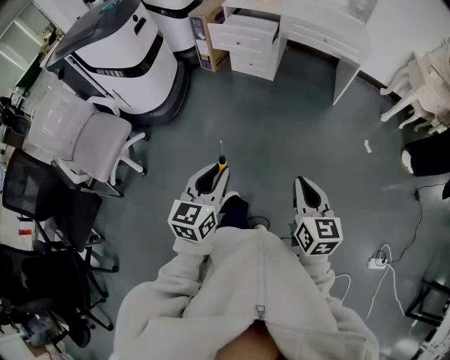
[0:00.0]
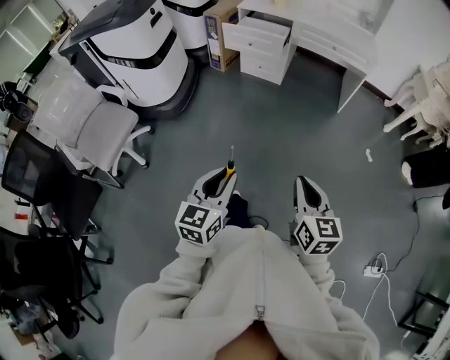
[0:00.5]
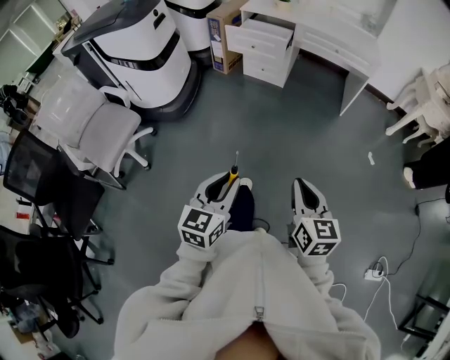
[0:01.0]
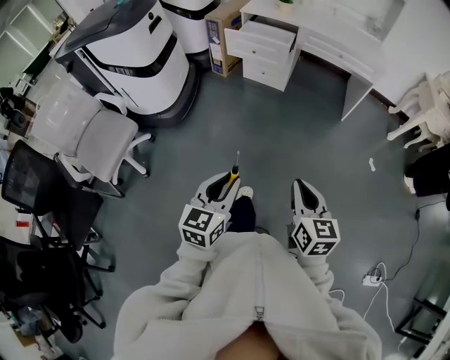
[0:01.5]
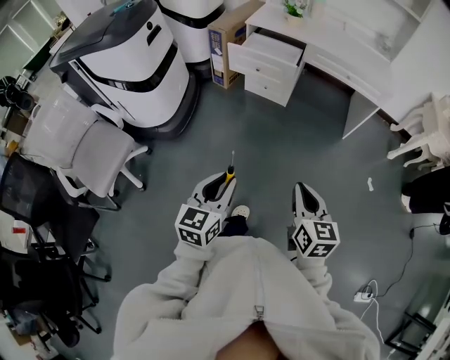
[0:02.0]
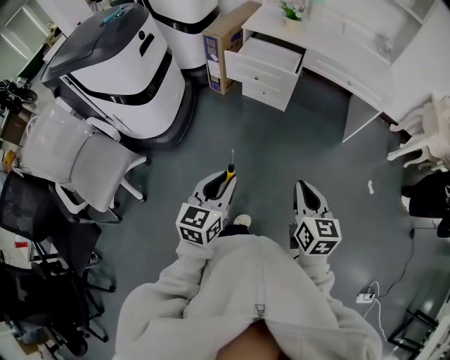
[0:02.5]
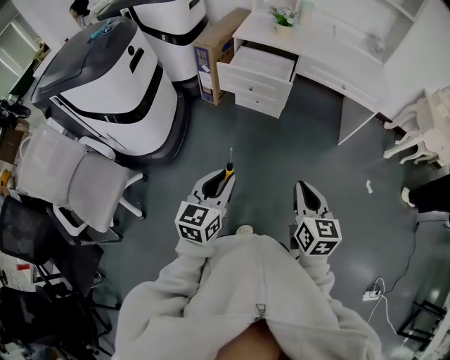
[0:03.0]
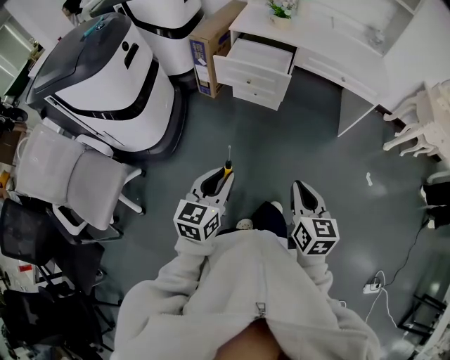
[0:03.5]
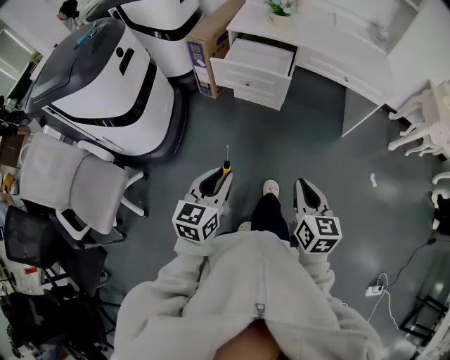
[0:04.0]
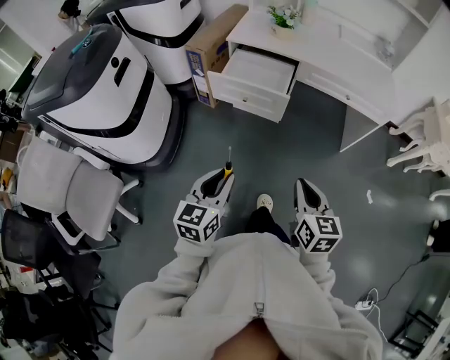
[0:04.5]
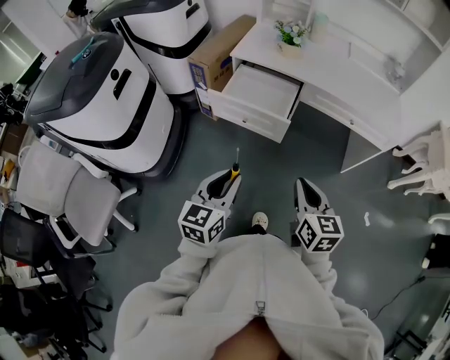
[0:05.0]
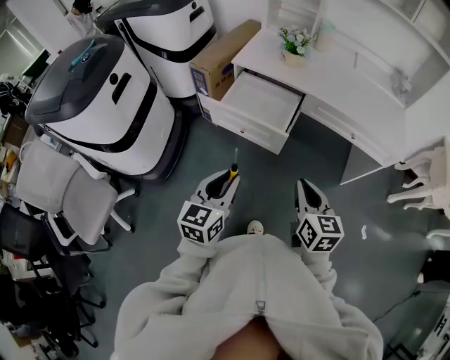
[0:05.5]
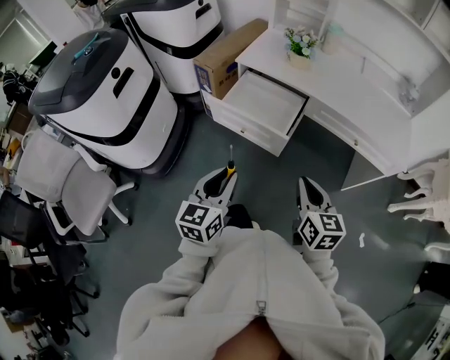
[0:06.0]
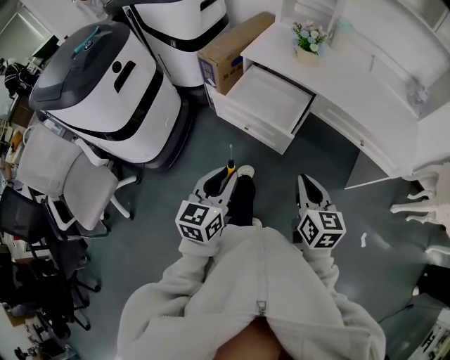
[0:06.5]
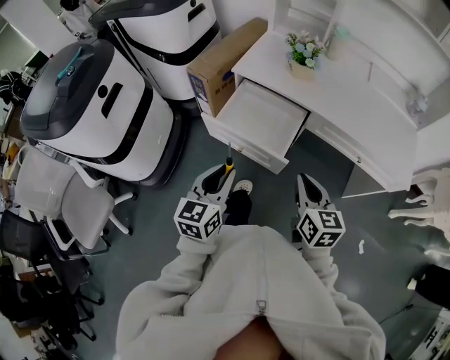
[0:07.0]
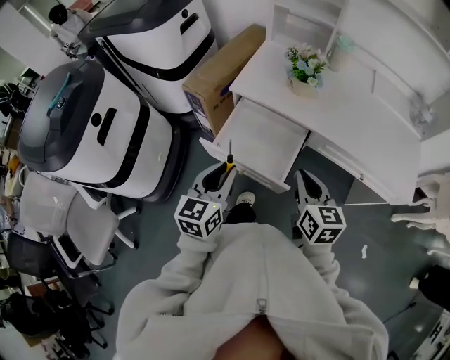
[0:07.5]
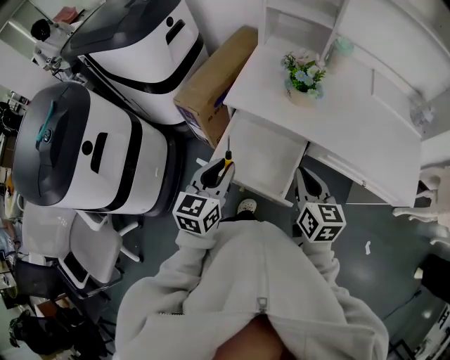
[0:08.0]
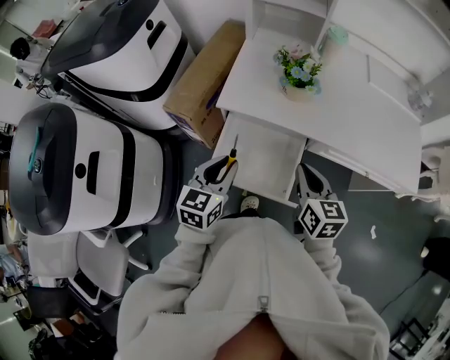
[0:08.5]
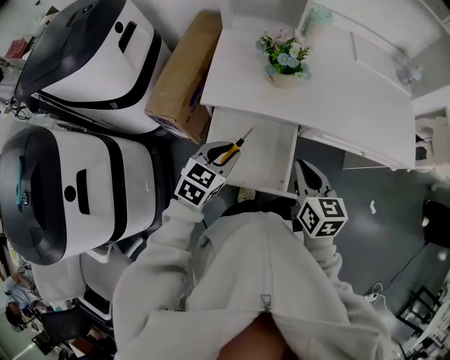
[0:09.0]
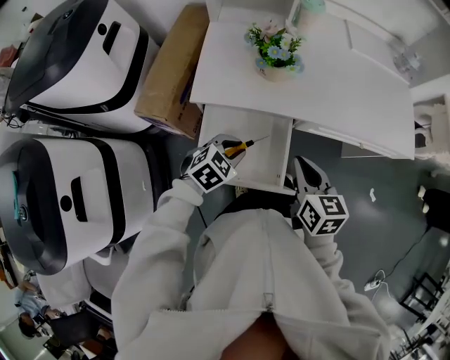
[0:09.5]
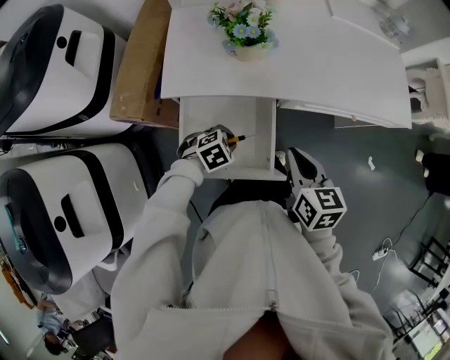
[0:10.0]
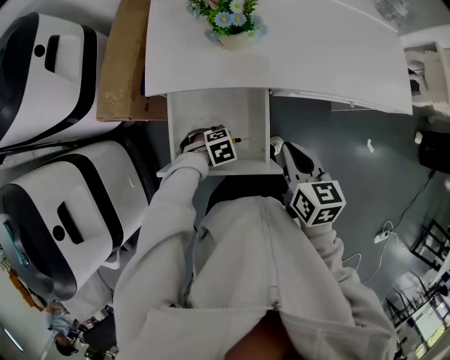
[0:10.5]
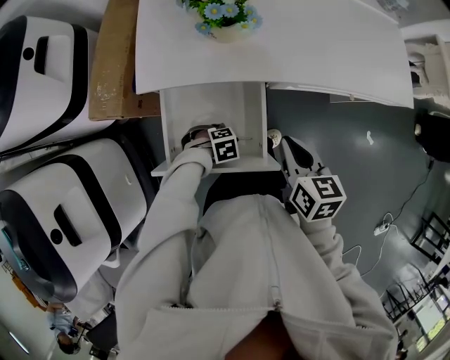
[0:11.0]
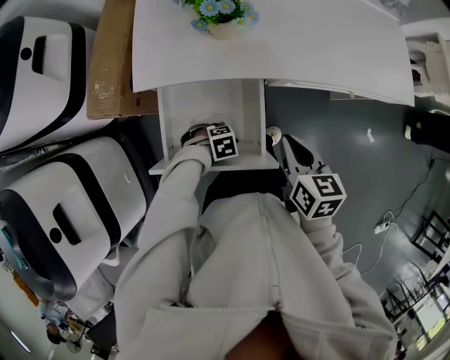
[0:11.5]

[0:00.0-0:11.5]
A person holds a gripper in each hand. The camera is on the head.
0:00.0 to 0:02.0: Both grippers travel together forward, approximately 15 cm.
0:02.0 to 0:04.0: The two grippers go about 15 cm forward.
0:04.0 to 0:06.0: Both grippers travel together forward, approximately 25 cm.
0:06.0 to 0:07.5: The grippers both shift forward by roughly 20 cm.
0:07.5 to 0:09.5: The right gripper changes place by about 10 cm; the left gripper shifts by approximately 20 cm, and points its fingers about 30 degrees further downward.
0:09.5 to 0:11.5: The left gripper goes some 20 cm downward, and swivels roughly 50 degrees; the right gripper is displaced downward by about 5 cm.

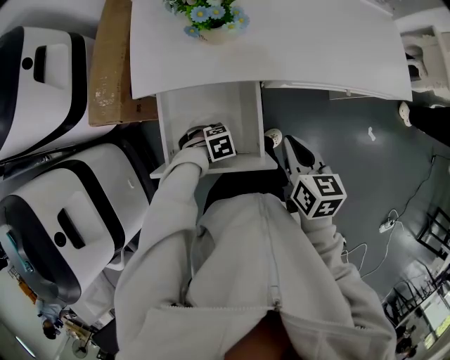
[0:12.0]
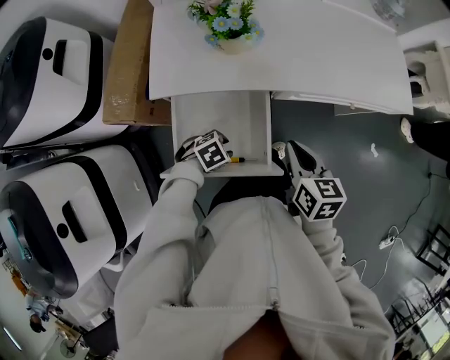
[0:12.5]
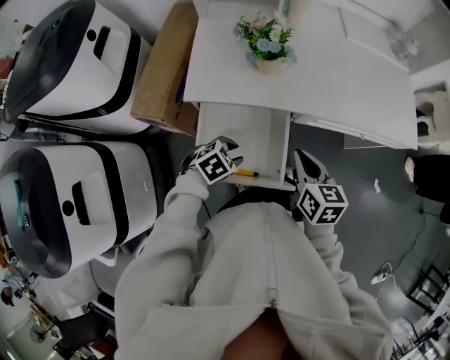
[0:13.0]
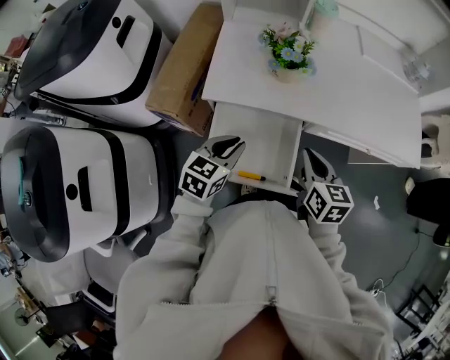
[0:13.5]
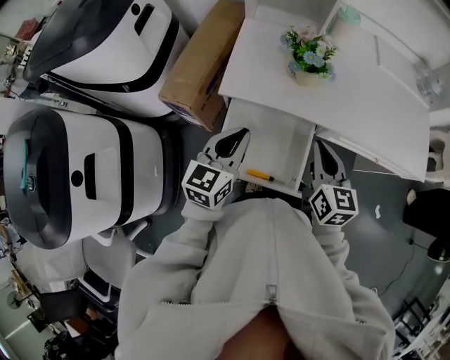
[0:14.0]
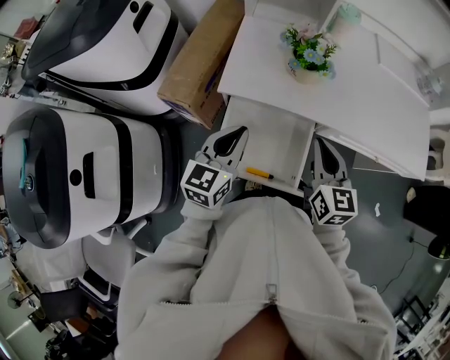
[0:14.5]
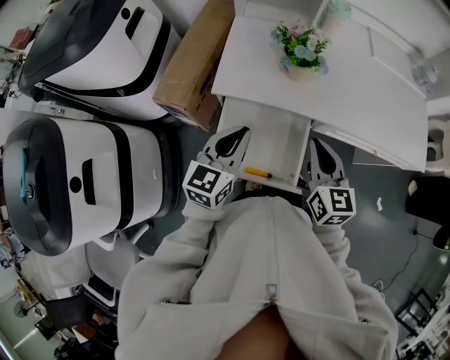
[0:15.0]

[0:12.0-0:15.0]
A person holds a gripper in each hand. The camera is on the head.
0:12.0 to 0:13.5: The right gripper changes place by approximately 10 cm. The left gripper goes approximately 25 cm upward, tips its fingers upward by approximately 40 degrees, and closes.
0:13.5 to 0:15.0: The right gripper moves some 5 cm. Meanwhile the left gripper shifts about 5 cm upward, and changes its angle by about 20 degrees.

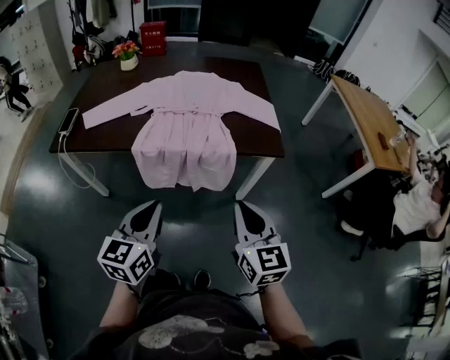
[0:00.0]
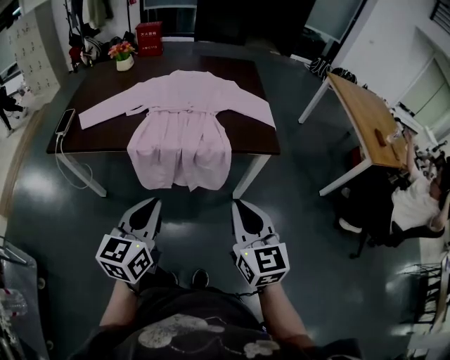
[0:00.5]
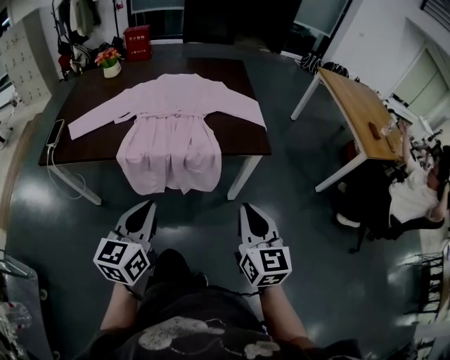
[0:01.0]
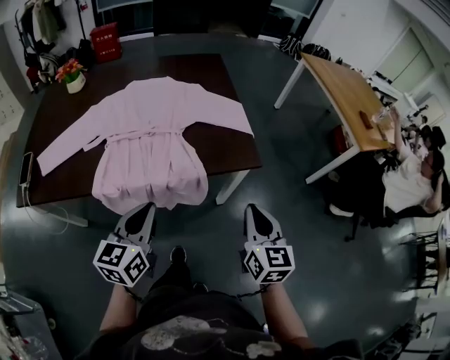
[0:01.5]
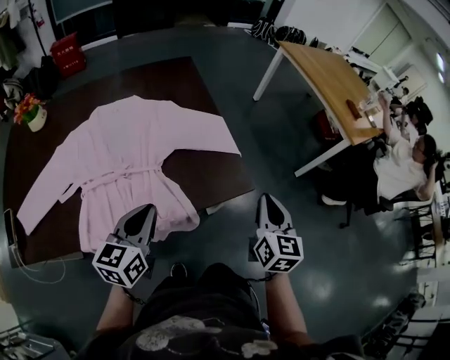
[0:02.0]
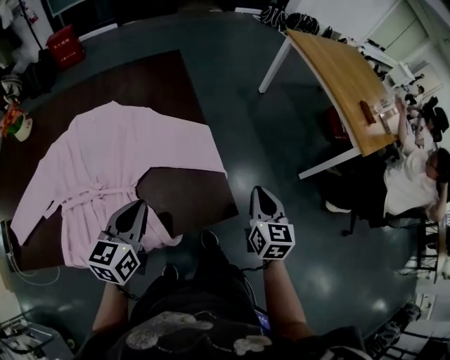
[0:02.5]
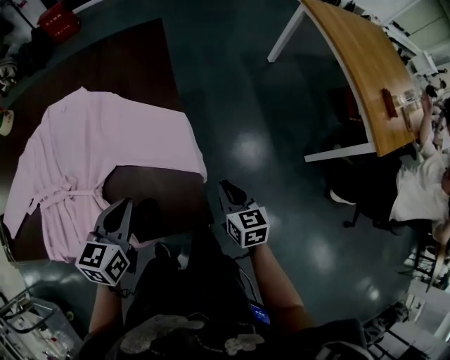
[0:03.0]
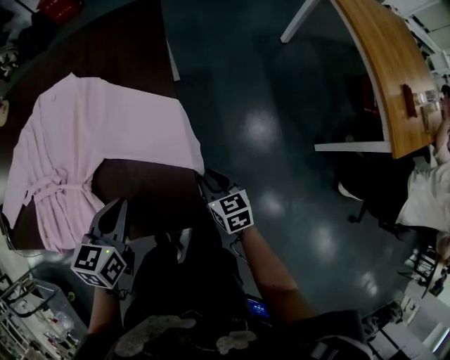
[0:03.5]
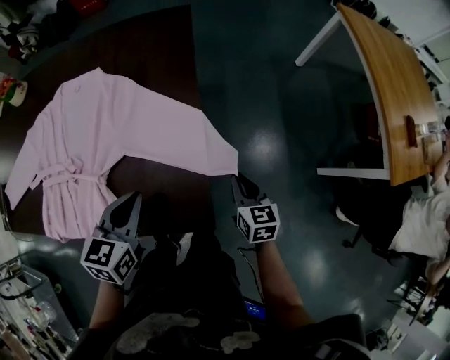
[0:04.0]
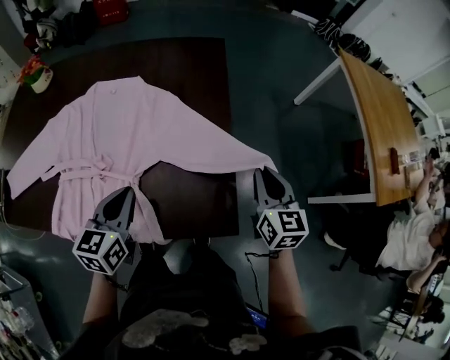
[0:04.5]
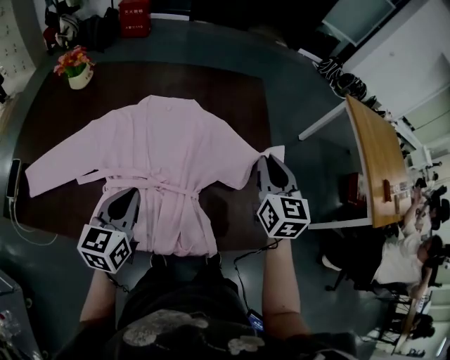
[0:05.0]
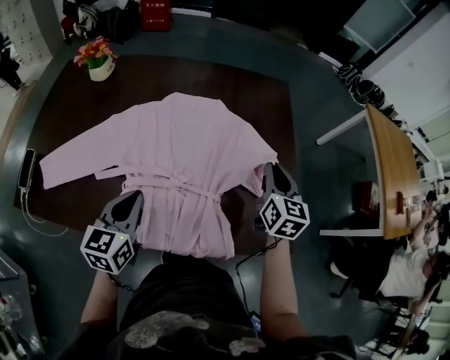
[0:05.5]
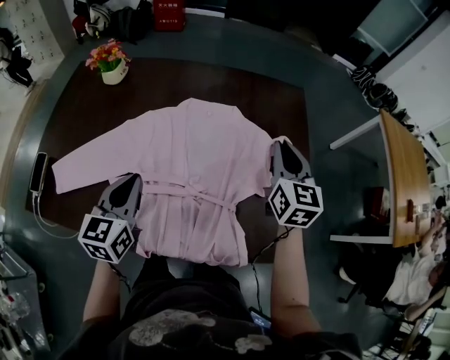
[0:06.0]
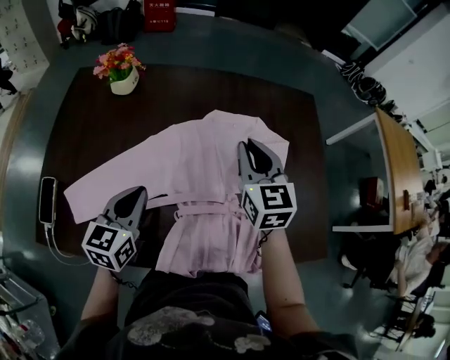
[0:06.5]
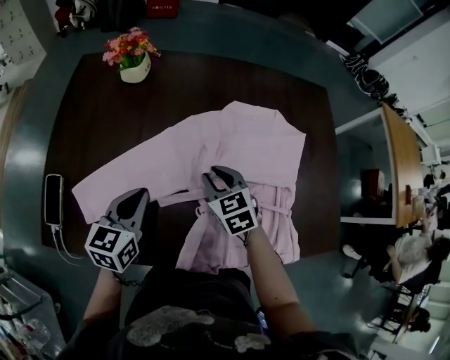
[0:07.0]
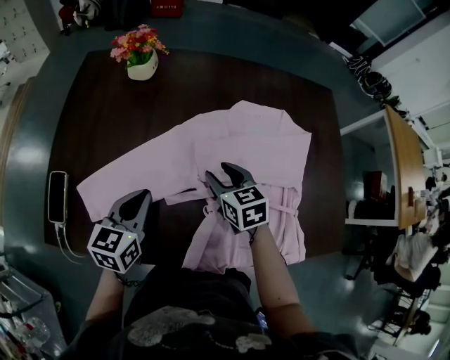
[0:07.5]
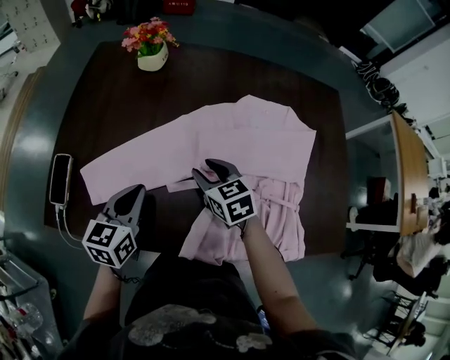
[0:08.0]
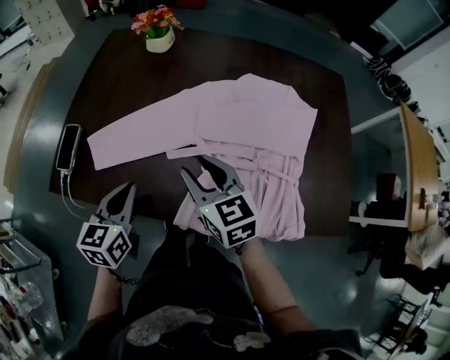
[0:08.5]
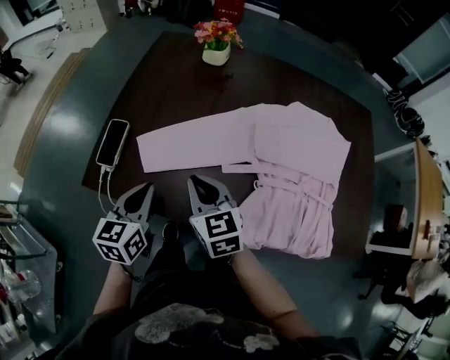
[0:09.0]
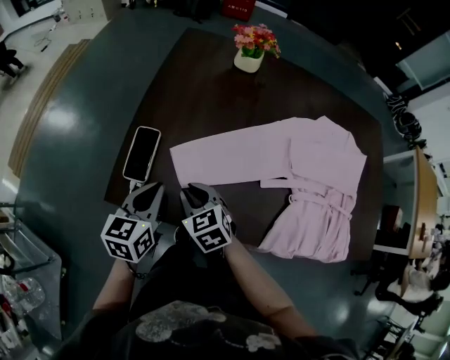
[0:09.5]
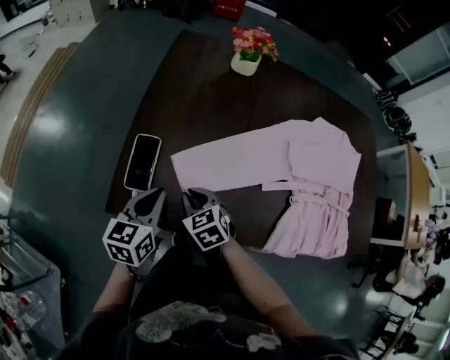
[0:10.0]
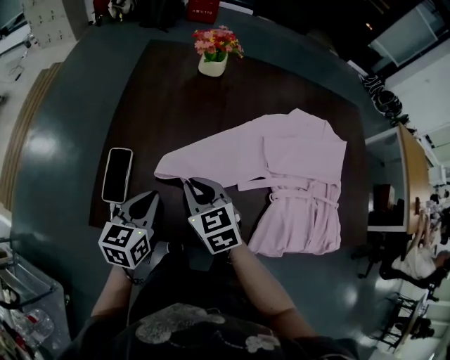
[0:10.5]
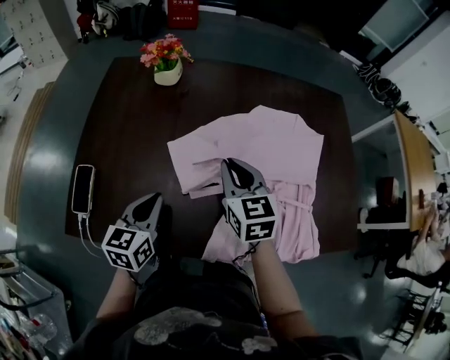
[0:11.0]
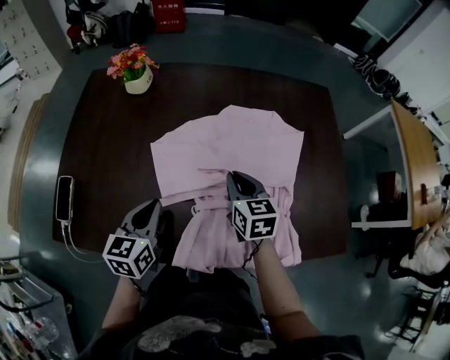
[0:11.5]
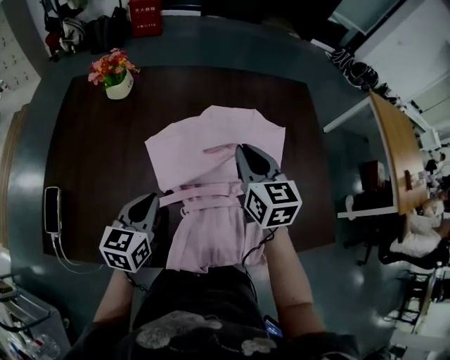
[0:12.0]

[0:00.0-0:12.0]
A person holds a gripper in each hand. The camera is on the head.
0:00.0 to 0:02.0: The right gripper shifts by some 35 cm, and changes its angle by approximately 40 degrees; the left gripper ends up about 35 cm from where it was, and rotates about 20 degrees.
0:02.0 to 0:04.0: The left gripper shifts by some 25 cm, and swivels roughly 20 degrees. Meanwhile the right gripper moves some 30 cm, and swivels roughly 40 degrees.
0:04.0 to 0:06.0: The right gripper shifts roughly 50 cm to the left, upward and forward, and turns by about 30 degrees. Meanwhile the left gripper travels to the left by some 40 cm, and changes its angle by about 20 degrees.
0:06.0 to 0:08.0: The right gripper shifts approximately 40 cm to the left and downward, swivels about 40 degrees, and opens its fingers; the left gripper heads to the left, covering about 20 cm.
0:08.0 to 0:10.0: Both grippers travel together to the left, about 30 cm. The right gripper closes.
0:10.0 to 0:12.0: The left gripper is displaced to the right by some 35 cm, while the right gripper moves to the right and upward, some 50 cm, and changes its angle by approximately 40 degrees.
